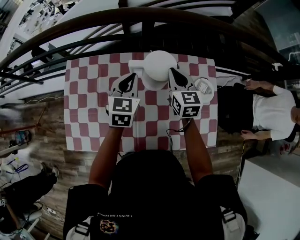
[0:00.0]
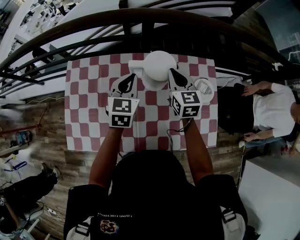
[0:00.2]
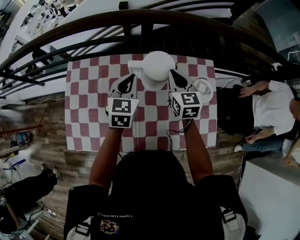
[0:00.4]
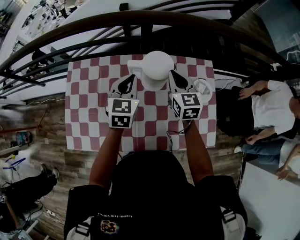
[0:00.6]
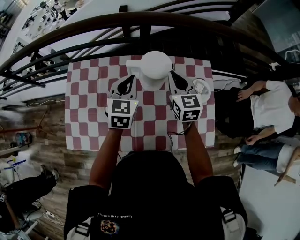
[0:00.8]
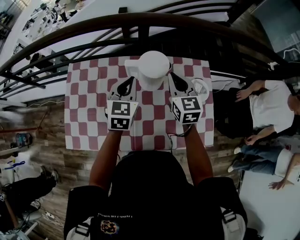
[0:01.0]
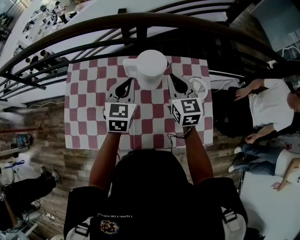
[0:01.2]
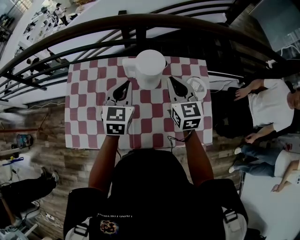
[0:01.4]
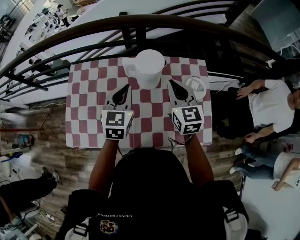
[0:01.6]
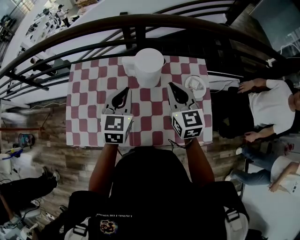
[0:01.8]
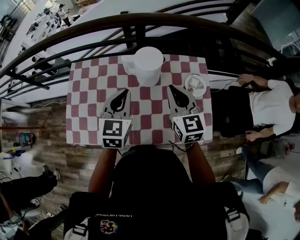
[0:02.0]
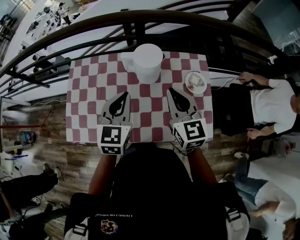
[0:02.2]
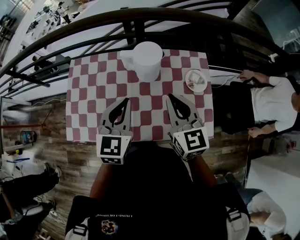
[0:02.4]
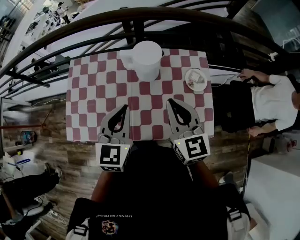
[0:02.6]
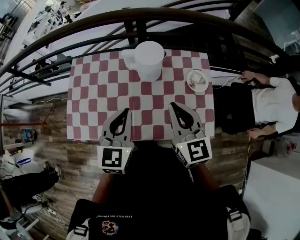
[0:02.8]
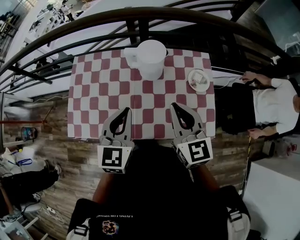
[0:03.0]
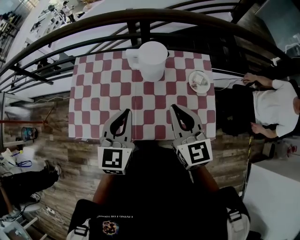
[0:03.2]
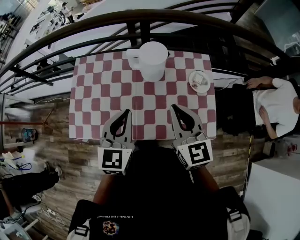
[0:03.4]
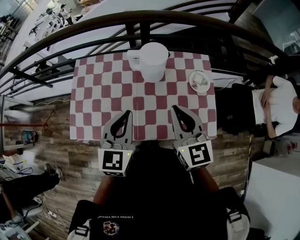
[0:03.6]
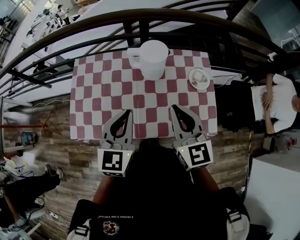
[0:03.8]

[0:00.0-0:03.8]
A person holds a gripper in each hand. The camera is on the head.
0:00.0 to 0:01.2: The right gripper heads backward and upward, covering roughly 10 cm, while the left gripper travels backward by about 5 cm.
0:01.2 to 0:02.6: The left gripper shifts some 15 cm backward, while the right gripper goes roughly 15 cm backward and upward.
0:02.6 to 0:03.8: The right gripper moves some 5 cm.

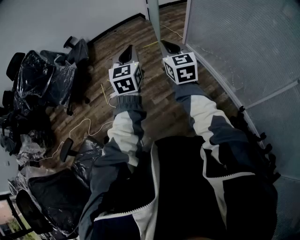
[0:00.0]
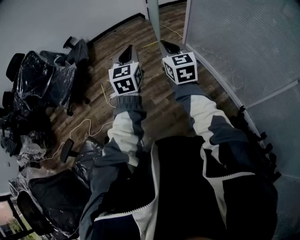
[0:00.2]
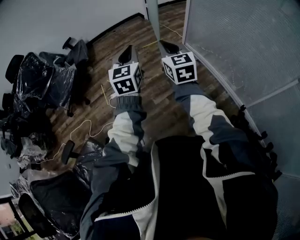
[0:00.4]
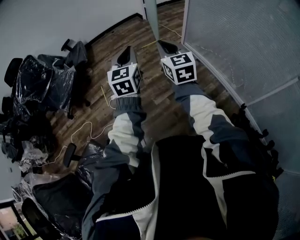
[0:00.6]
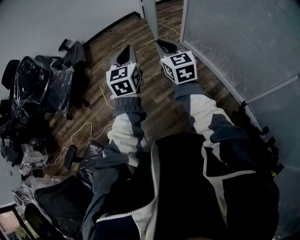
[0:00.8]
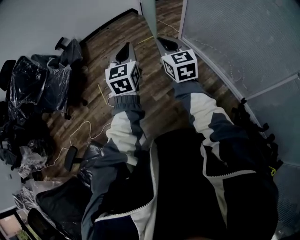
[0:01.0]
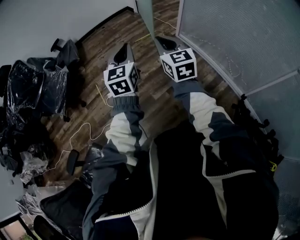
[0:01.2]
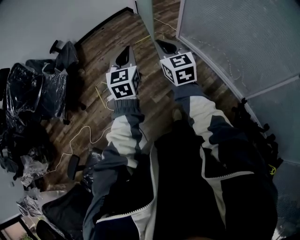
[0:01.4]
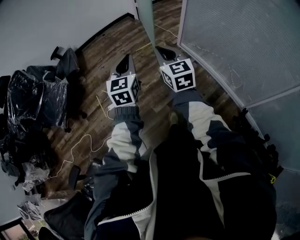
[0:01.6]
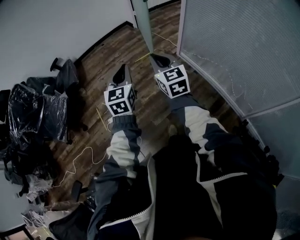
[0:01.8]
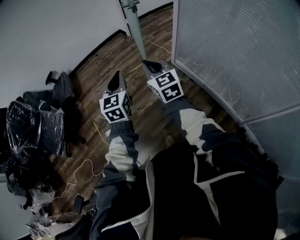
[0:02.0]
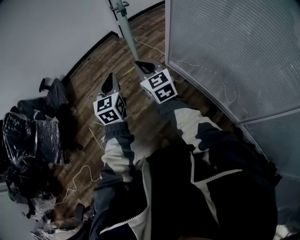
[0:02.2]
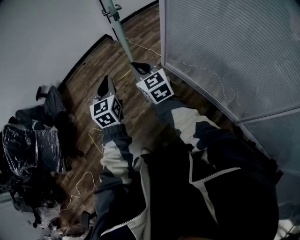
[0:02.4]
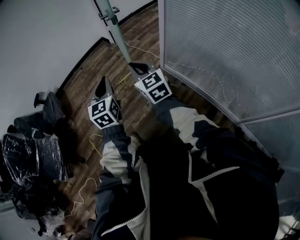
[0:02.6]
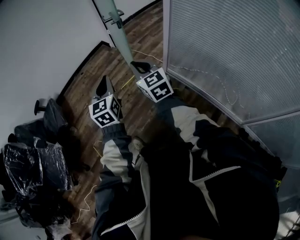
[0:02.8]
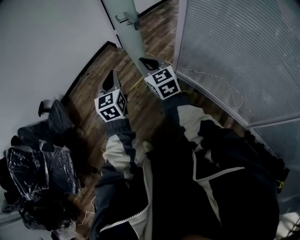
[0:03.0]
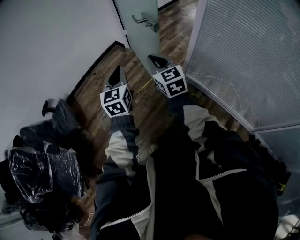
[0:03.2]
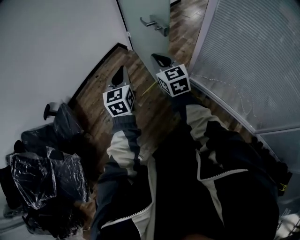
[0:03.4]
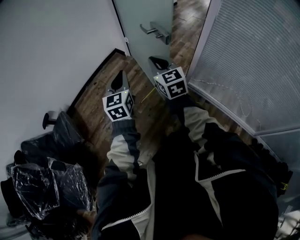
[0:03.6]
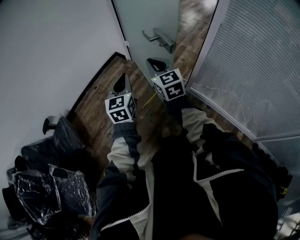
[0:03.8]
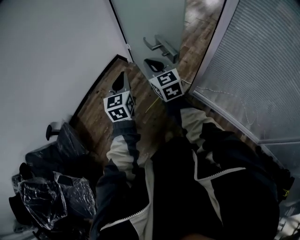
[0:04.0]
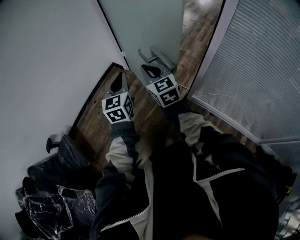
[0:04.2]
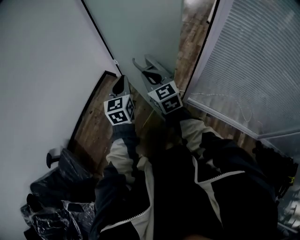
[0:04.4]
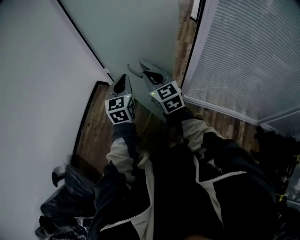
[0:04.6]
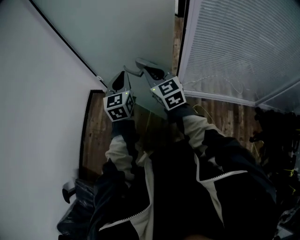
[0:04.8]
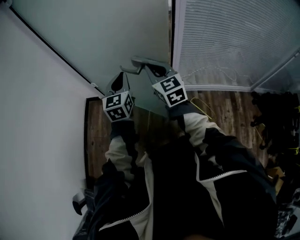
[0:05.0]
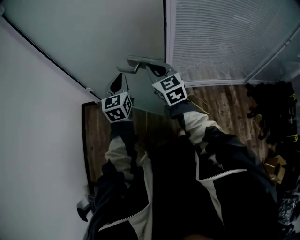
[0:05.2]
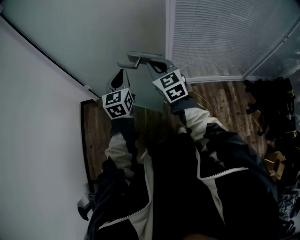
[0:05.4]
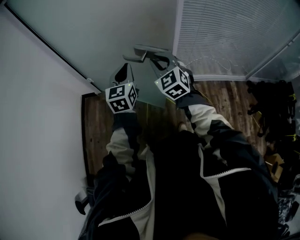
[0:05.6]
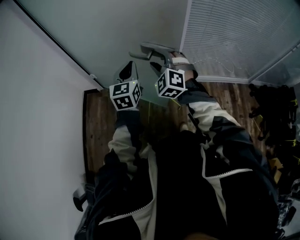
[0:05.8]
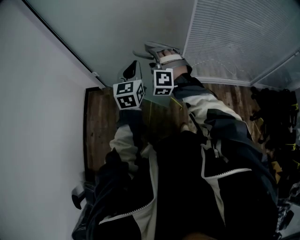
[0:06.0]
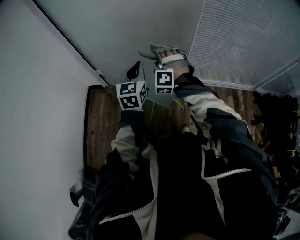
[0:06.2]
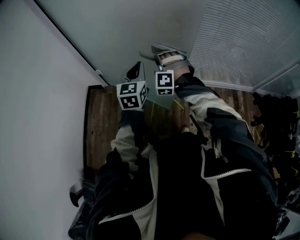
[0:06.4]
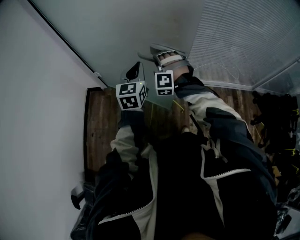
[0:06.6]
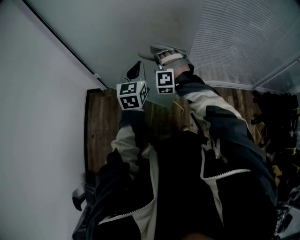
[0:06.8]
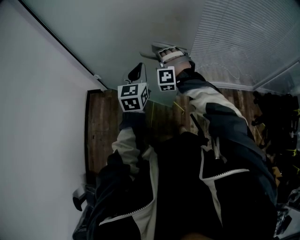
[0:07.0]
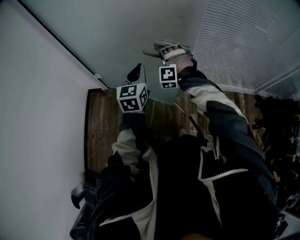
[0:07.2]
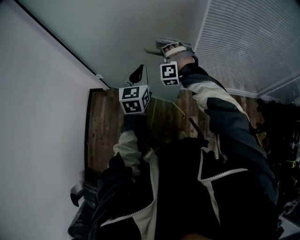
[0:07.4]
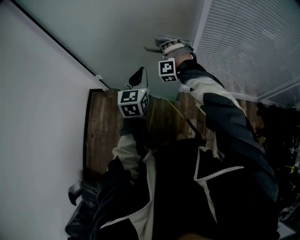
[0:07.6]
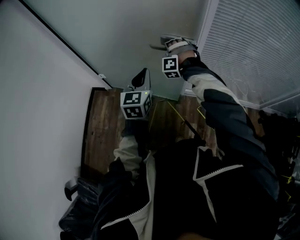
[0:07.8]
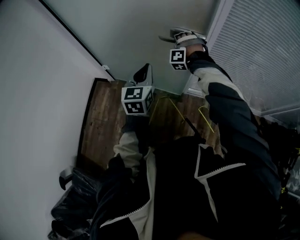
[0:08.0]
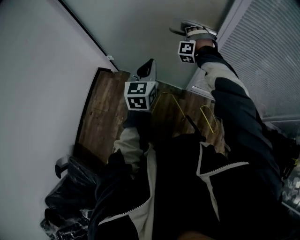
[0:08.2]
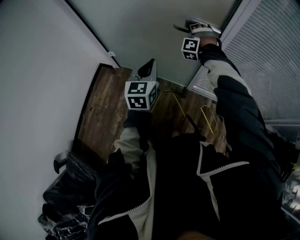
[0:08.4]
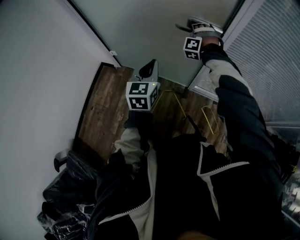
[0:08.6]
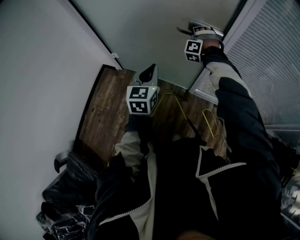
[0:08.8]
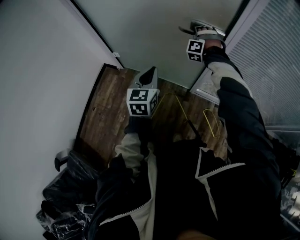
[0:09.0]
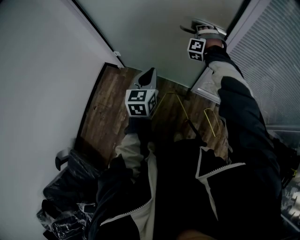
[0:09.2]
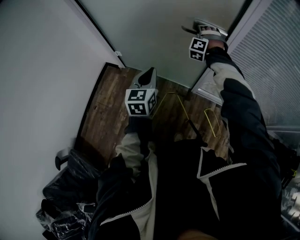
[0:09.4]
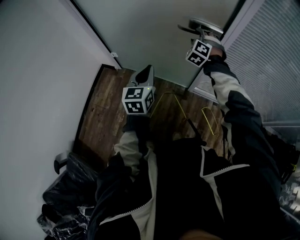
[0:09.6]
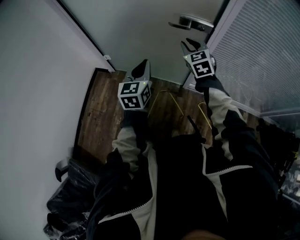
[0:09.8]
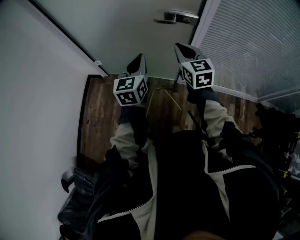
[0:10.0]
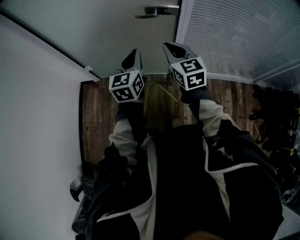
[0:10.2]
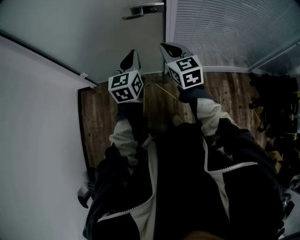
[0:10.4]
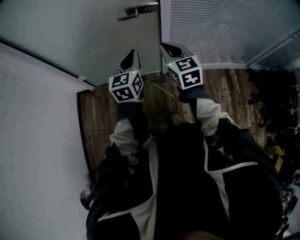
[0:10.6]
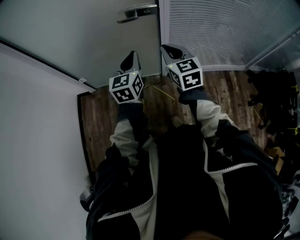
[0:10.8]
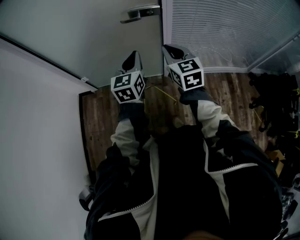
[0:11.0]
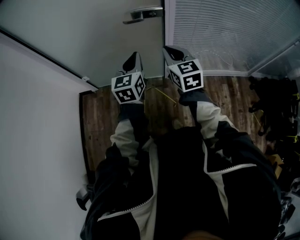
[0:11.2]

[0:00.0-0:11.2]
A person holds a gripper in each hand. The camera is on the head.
0:00.0 to 0:01.6: The grippers both shift forward by roughly 15 cm.
0:01.6 to 0:03.2: The pair of grippers is taken forward, about 50 cm.
0:03.2 to 0:04.8: The right gripper changes place by some 30 cm, and turns by approximately 30 degrees. Meanwhile the left gripper moves approximately 35 cm, and rotates roughly 30 degrees.
0:04.8 to 0:06.4: The right gripper heads downward, covering roughly 10 cm, twists roughly 80 degrees counterclockwise, seen from behind, and opens up.
0:06.4 to 0:08.0: The right gripper travels forward by roughly 25 cm, while the left gripper moves forward and to the right, approximately 10 cm.
0:08.0 to 0:09.6: The right gripper rotates some 40 degrees, and opens up; the left gripper changes place by approximately 5 cm.
0:09.6 to 0:11.2: The right gripper goes some 25 cm backward, twists approximately 70 degrees clockwise, seen from behind, and closes, while the left gripper travels to the right by approximately 10 cm.

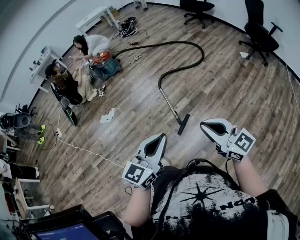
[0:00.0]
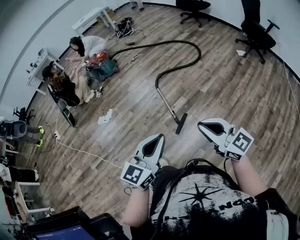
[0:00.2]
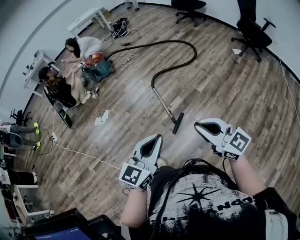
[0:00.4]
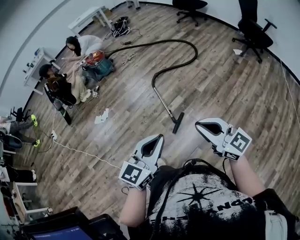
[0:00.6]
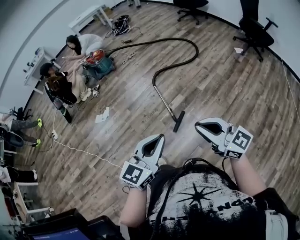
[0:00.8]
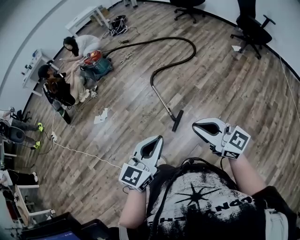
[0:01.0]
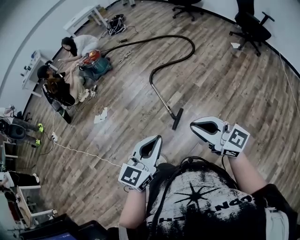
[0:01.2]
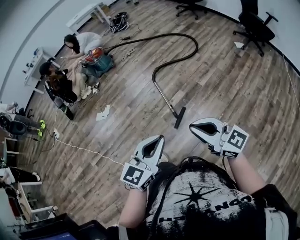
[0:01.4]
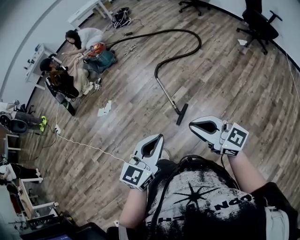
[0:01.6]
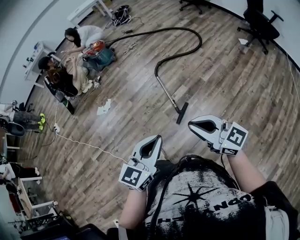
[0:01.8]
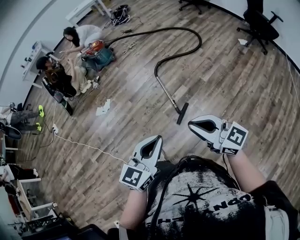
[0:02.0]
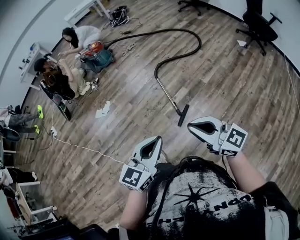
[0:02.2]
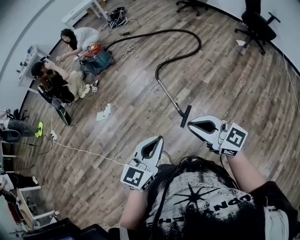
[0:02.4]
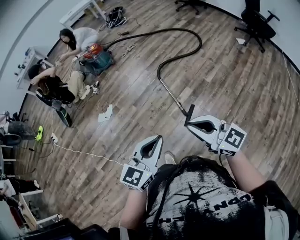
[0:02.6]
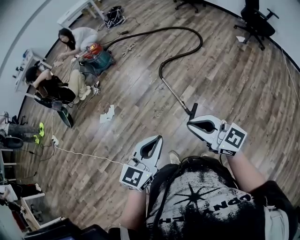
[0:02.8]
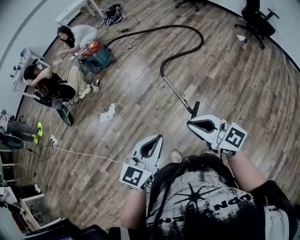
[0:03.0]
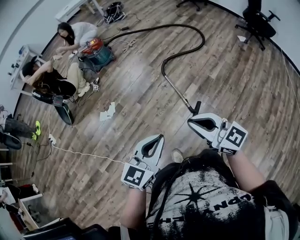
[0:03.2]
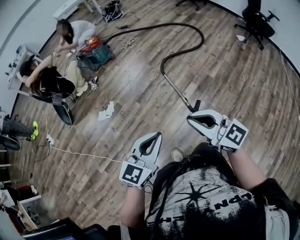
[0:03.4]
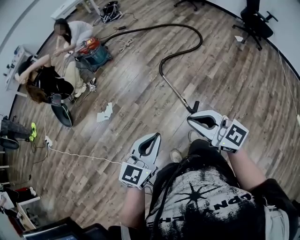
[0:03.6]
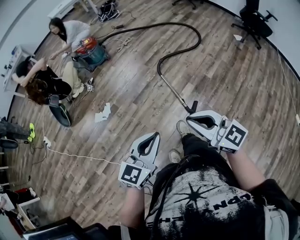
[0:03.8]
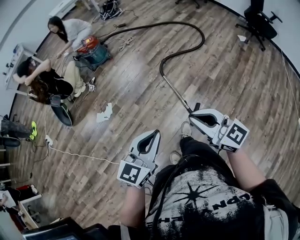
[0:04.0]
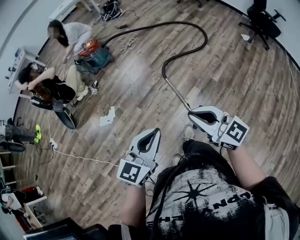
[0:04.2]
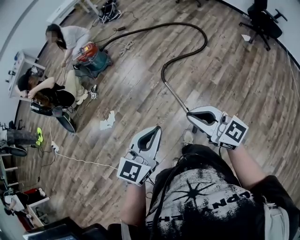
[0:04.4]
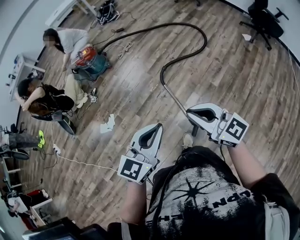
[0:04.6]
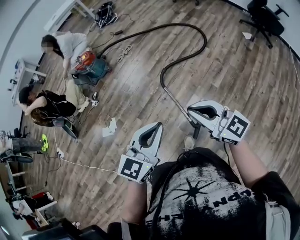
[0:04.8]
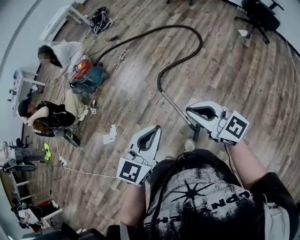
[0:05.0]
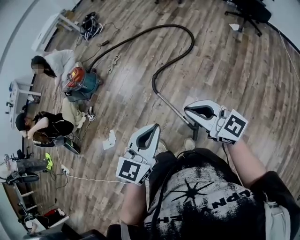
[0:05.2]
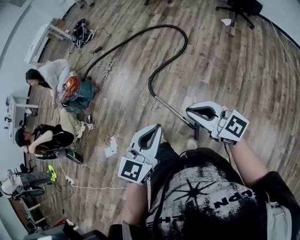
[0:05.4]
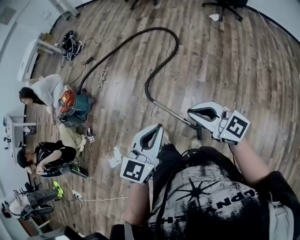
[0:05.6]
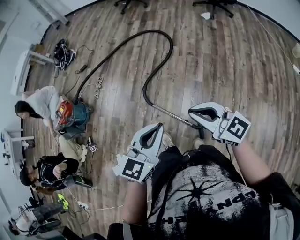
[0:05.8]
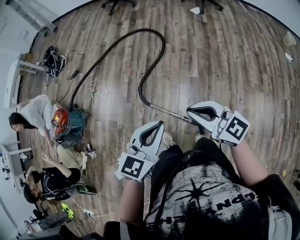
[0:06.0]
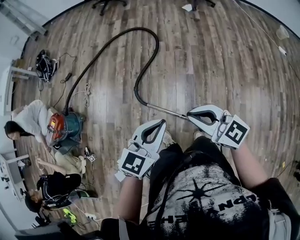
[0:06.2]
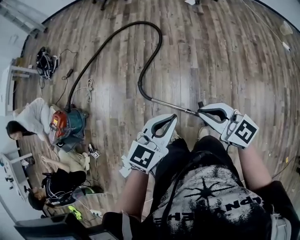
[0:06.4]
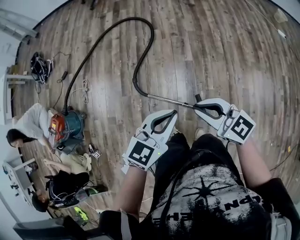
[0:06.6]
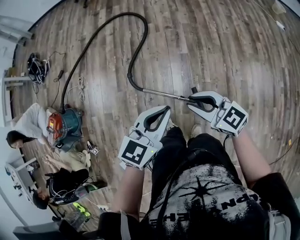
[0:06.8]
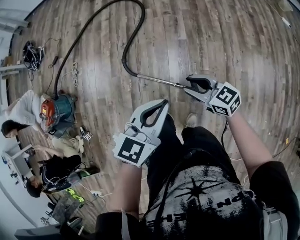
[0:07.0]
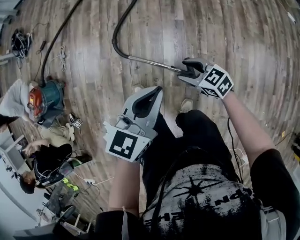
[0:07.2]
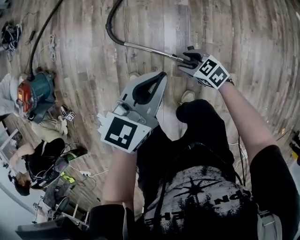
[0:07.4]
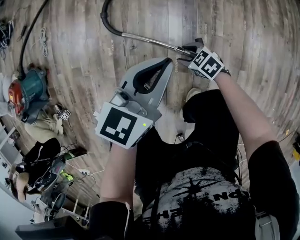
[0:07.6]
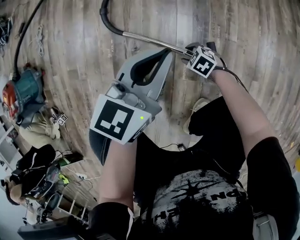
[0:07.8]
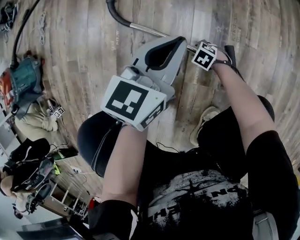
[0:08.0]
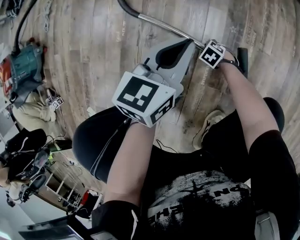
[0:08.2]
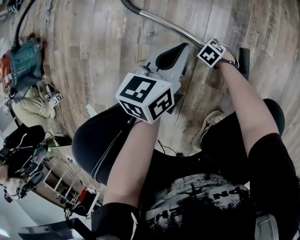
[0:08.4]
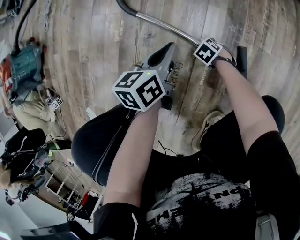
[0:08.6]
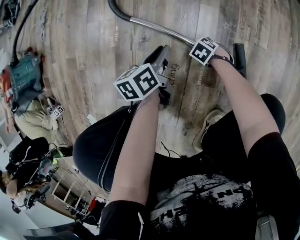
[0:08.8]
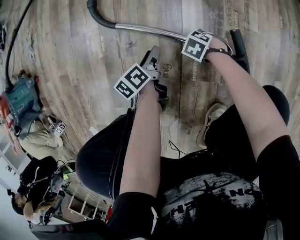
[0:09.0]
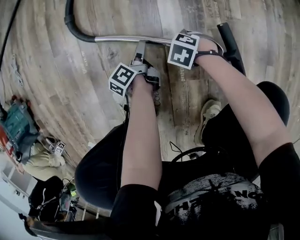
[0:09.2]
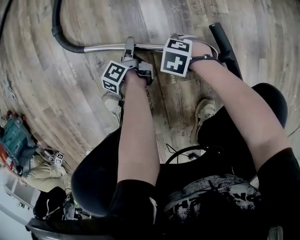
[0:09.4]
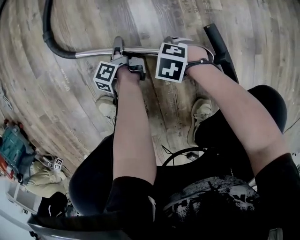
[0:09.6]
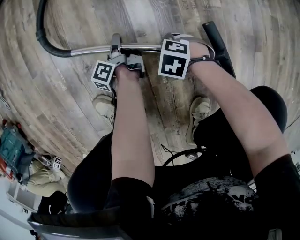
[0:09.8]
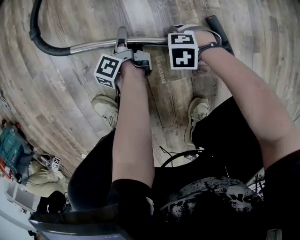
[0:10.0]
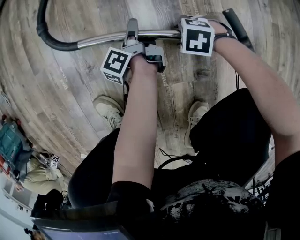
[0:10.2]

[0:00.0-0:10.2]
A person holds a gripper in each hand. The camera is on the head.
0:00.0 to 0:01.4: The grippers move only a little.
0:01.4 to 0:03.0: The grippers both shift to the left and forward by approximately 25 cm.
0:03.0 to 0:04.4: Both grippers travel together forward, roughly 20 cm.
0:04.4 to 0:05.8: The left gripper moves some 25 cm, and swivels roughly 30 degrees; the right gripper shifts by approximately 25 cm, and rotates roughly 20 degrees.
0:05.8 to 0:07.2: The left gripper heads downward, covering approximately 15 cm. Meanwhile the right gripper moves downward, about 35 cm, changes its angle by about 30 degrees, and opens.
0:07.2 to 0:08.8: The grippers both shift downward by some 60 cm. The right gripper angles its fingers downward, by approximately 40 degrees. Meanwhile the left gripper rolls counterclockwise, seen from behind, by approximately 50 degrees, and opens its fingers.
0:08.8 to 0:10.2: The right gripper ends up roughly 15 cm from where it was. Meanwhile the left gripper changes place by about 20 cm, changes its angle by some 40 degrees, and opens, then closes once more.
